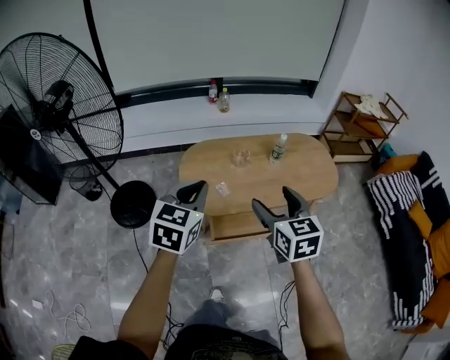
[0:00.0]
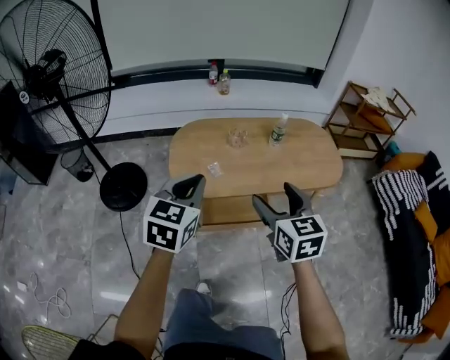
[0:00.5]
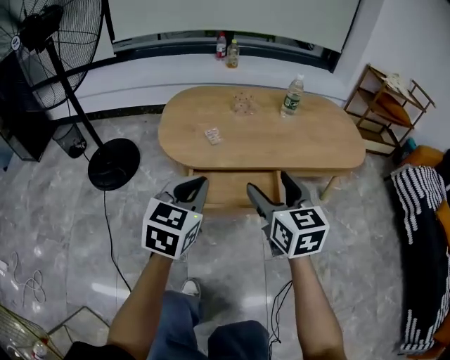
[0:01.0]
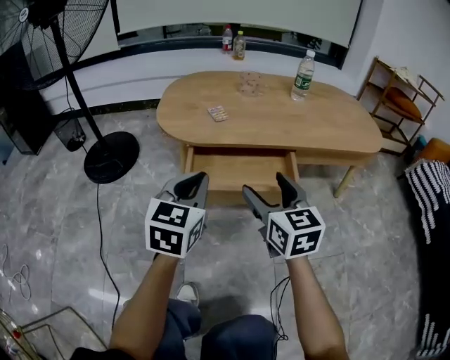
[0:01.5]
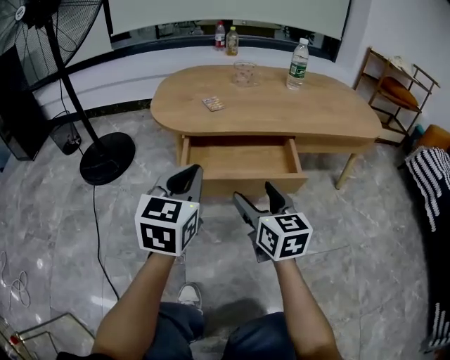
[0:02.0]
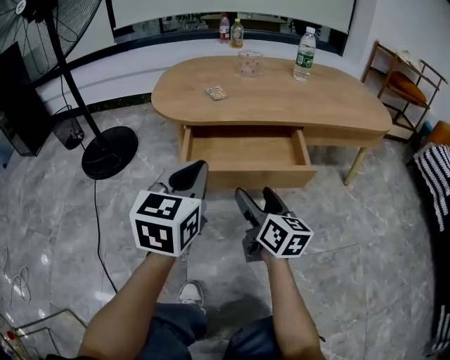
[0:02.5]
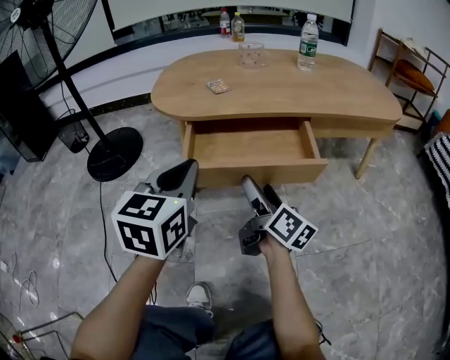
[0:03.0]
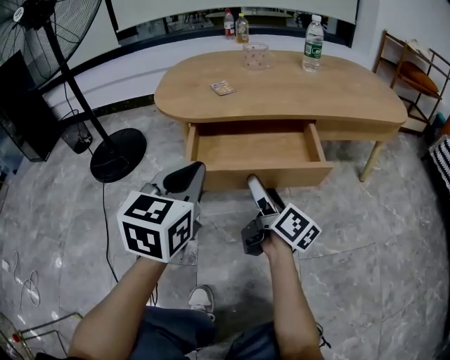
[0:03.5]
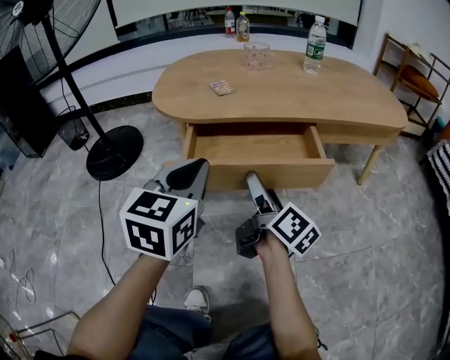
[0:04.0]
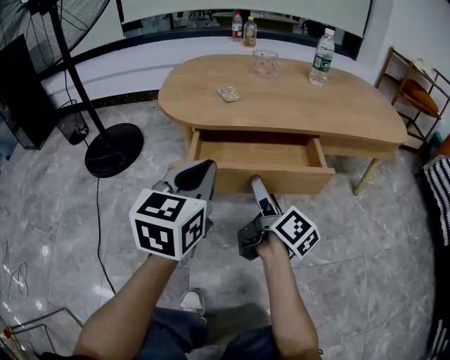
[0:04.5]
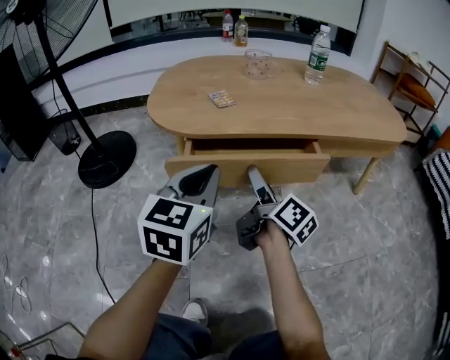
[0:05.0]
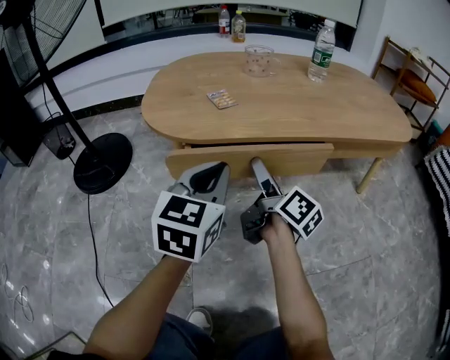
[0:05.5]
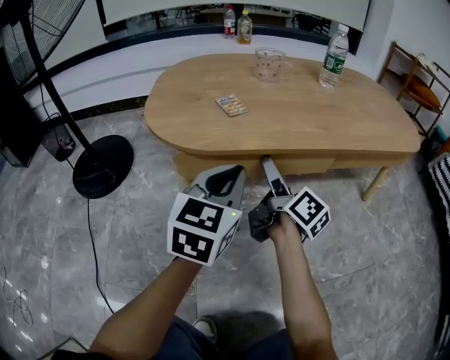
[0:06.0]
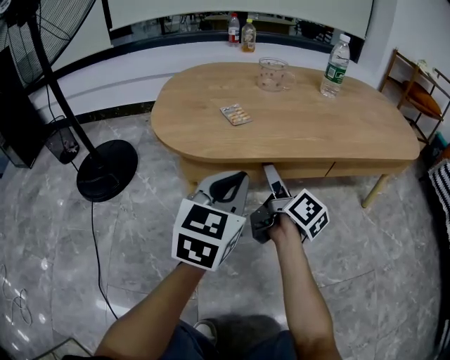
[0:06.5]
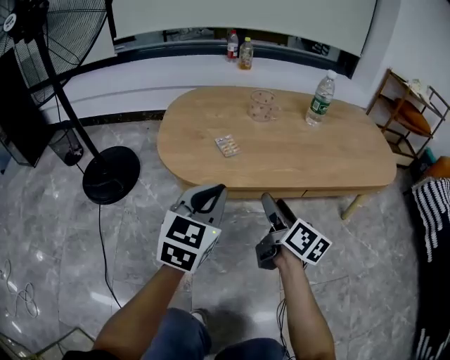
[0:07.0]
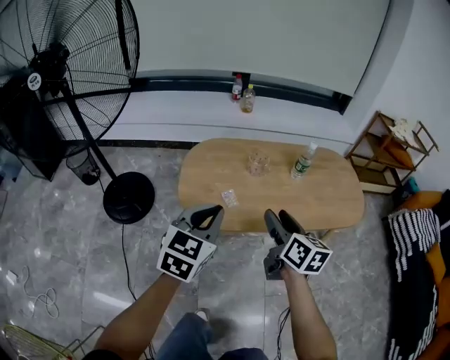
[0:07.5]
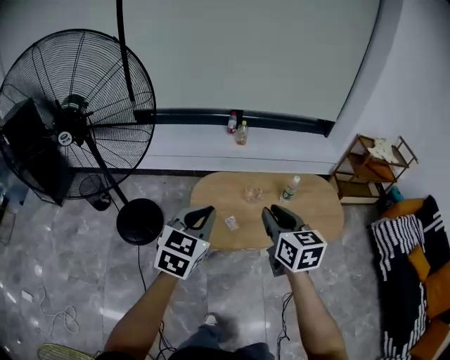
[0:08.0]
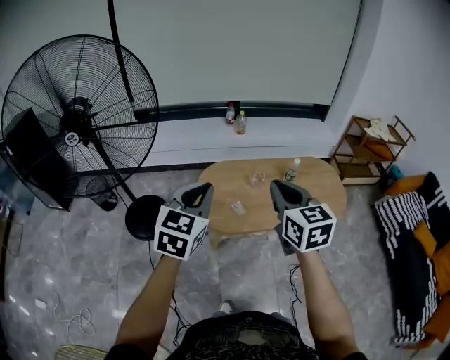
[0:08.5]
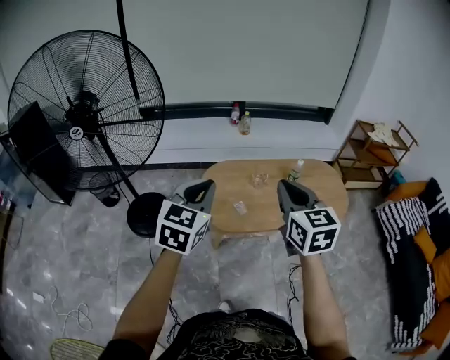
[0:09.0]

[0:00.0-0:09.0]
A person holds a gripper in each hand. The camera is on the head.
0:00.0 to 0:02.0: The two grippers go some 50 cm downward.
0:02.0 to 0:04.5: The right gripper travels downward and forward by approximately 10 cm, and rolls clockwise, seen from behind, by roughly 50 degrees.
0:04.5 to 0:07.0: The right gripper travels upward and forward by roughly 10 cm, while the left gripper moves forward and upward, some 10 cm.
0:07.0 to 0:09.0: Both grippers travel together upward, roughly 60 cm. The right gripper rolls counterclockwise, seen from behind, by approximately 50 degrees, and closes.

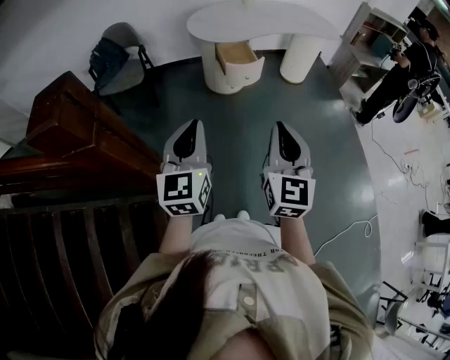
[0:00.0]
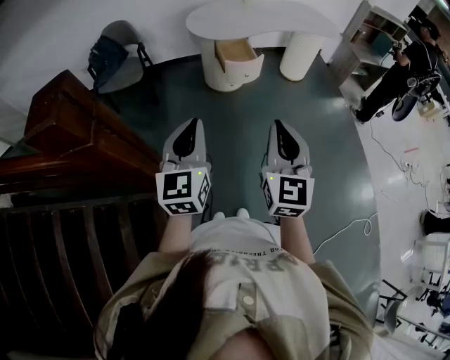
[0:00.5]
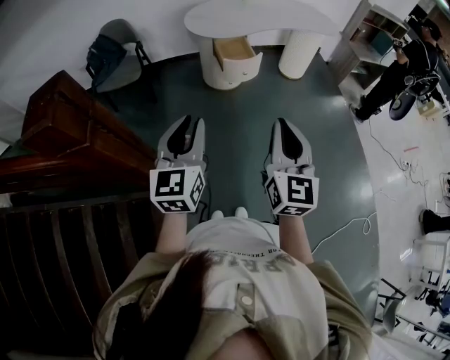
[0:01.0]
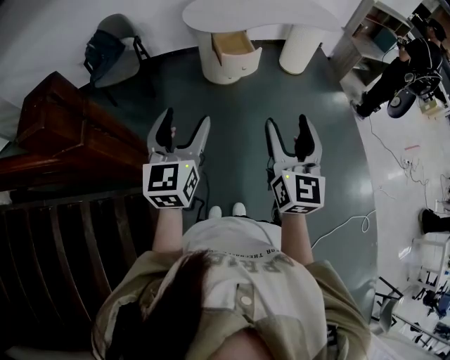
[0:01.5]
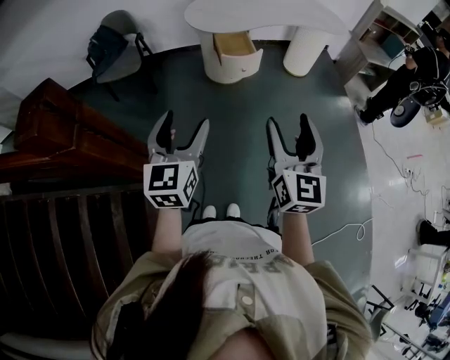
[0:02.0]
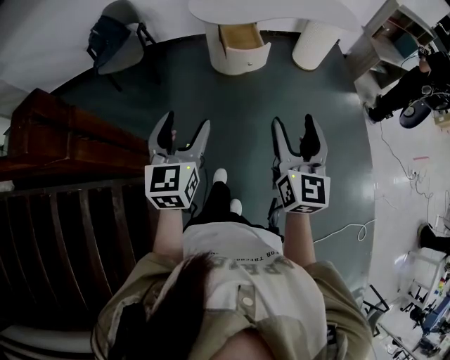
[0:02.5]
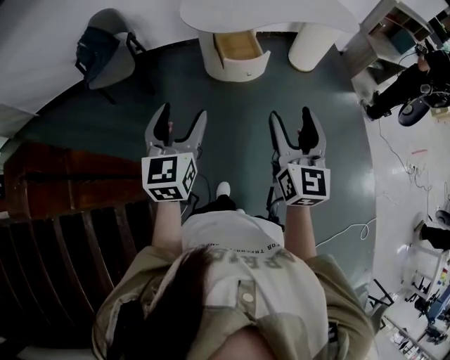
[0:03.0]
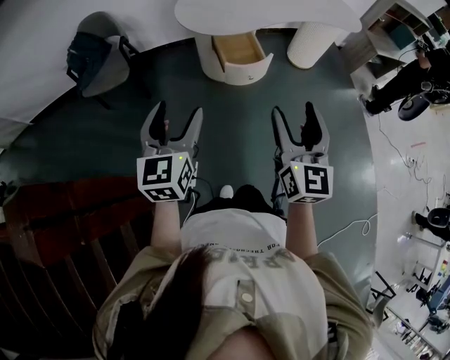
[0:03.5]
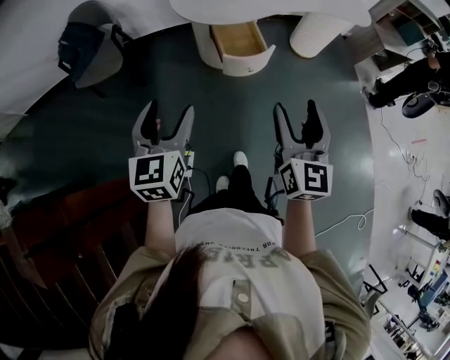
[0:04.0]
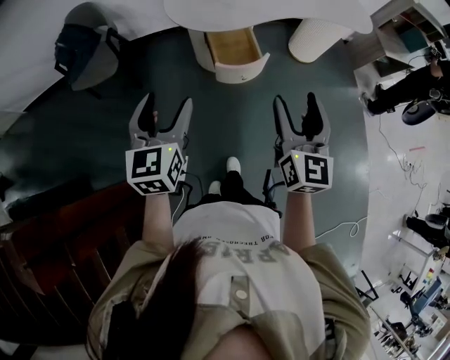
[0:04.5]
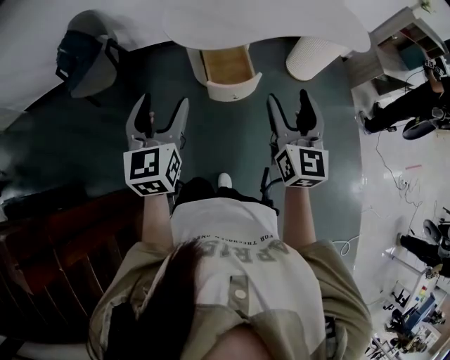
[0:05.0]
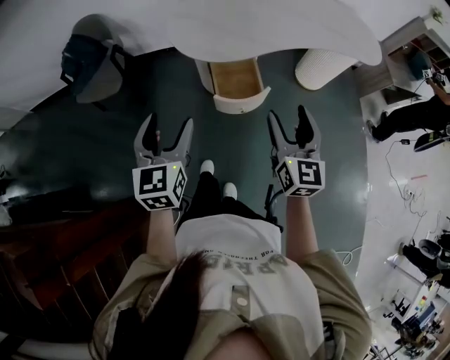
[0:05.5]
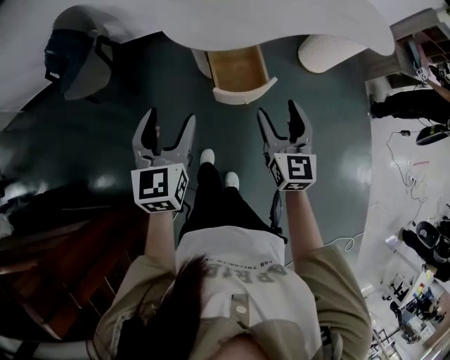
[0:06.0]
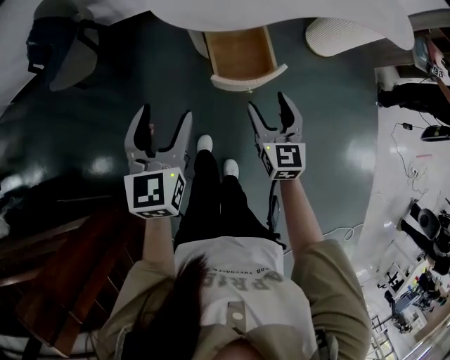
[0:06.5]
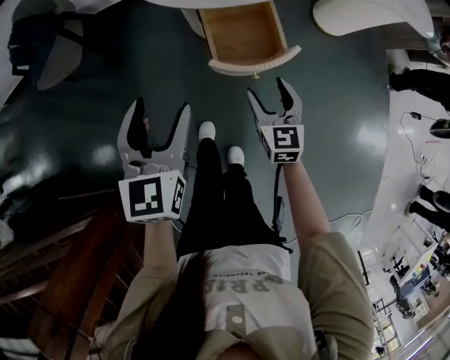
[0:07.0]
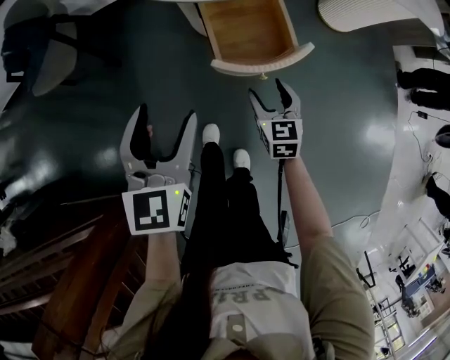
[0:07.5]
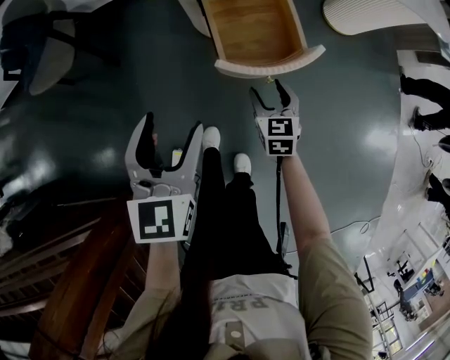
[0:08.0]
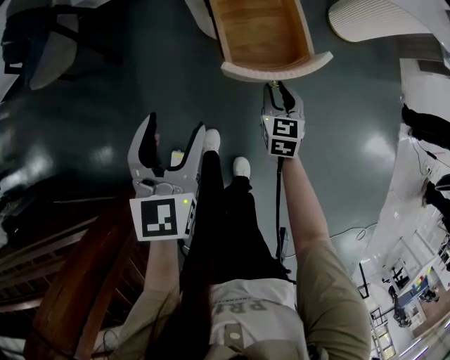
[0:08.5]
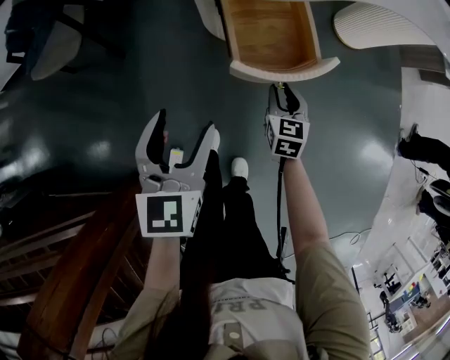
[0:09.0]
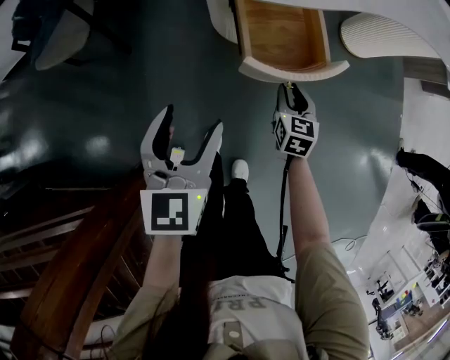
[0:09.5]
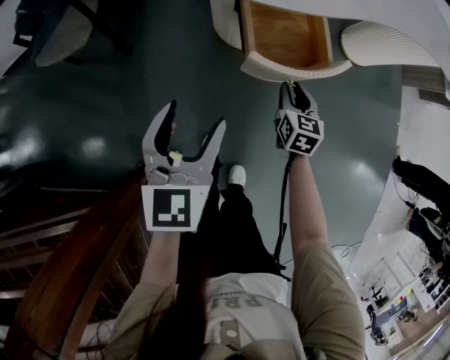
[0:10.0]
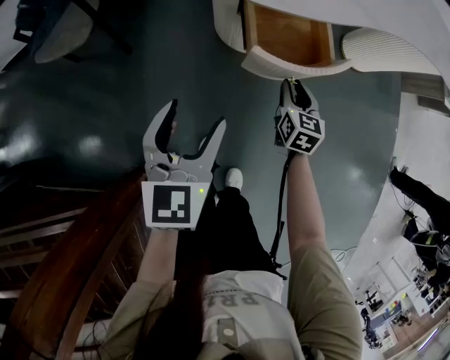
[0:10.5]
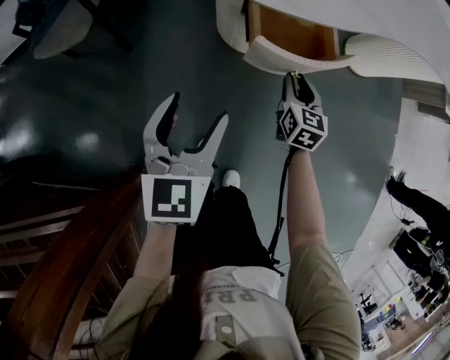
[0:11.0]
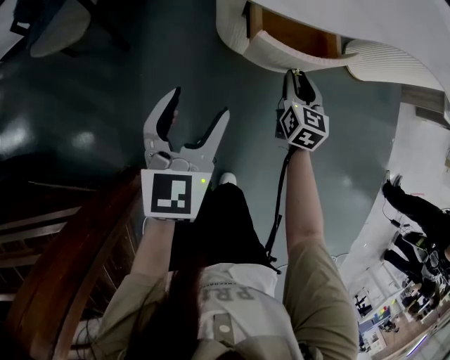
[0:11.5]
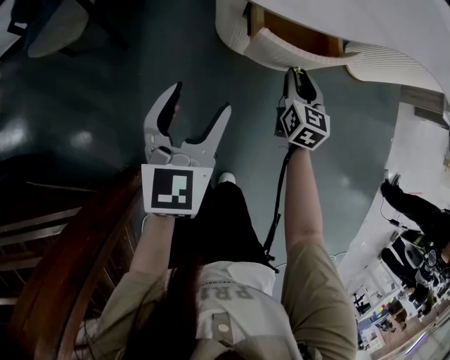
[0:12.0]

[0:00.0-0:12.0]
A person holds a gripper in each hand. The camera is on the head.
0:00.0 to 0:02.0: The right gripper goes roughly 10 cm to the right, and opens; the left gripper travels to the right by roughly 5 cm, and opens up.
0:02.0 to 0:04.0: The two grippers go roughly 25 cm forward.
0:04.0 to 0:06.0: The left gripper shifts about 20 cm forward, while the right gripper is displaced forward and downward by about 25 cm.
0:06.0 to 0:08.0: The left gripper moves downward, about 20 cm. The right gripper goes roughly 40 cm downward, and changes its angle by roughly 30 degrees.
0:08.0 to 0:10.0: The right gripper shifts approximately 5 cm forward, and closes its fingers.
0:10.0 to 0:12.0: The two grippers go approximately 5 cm forward.

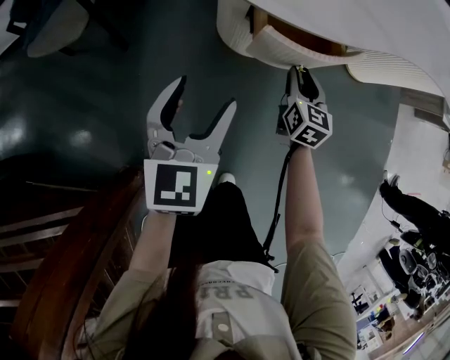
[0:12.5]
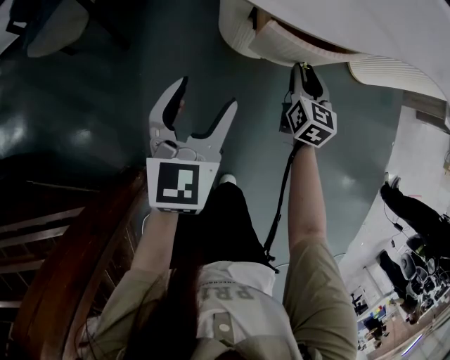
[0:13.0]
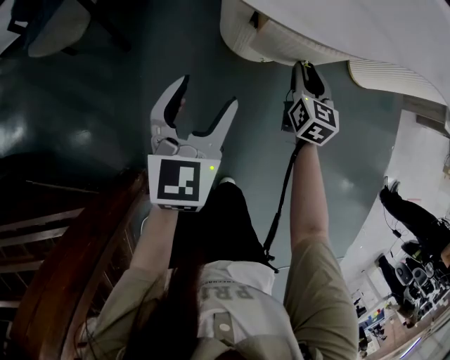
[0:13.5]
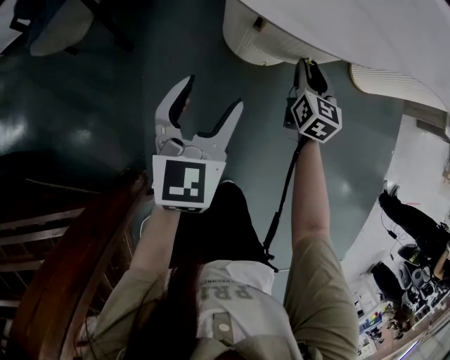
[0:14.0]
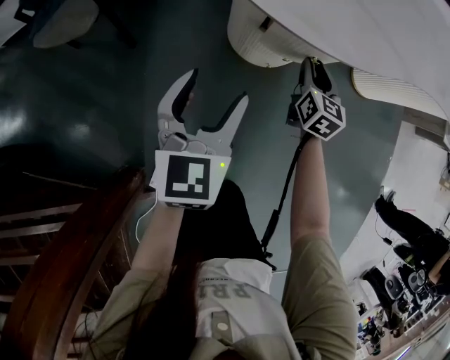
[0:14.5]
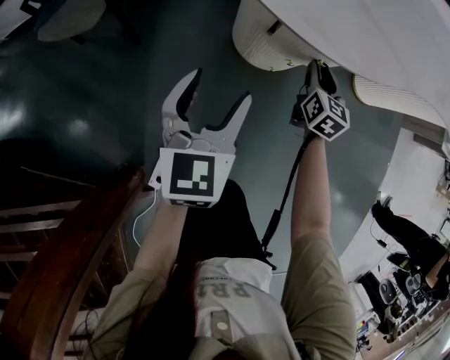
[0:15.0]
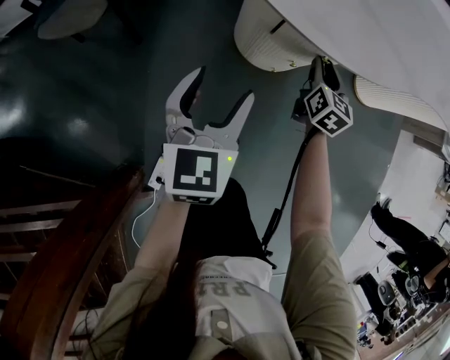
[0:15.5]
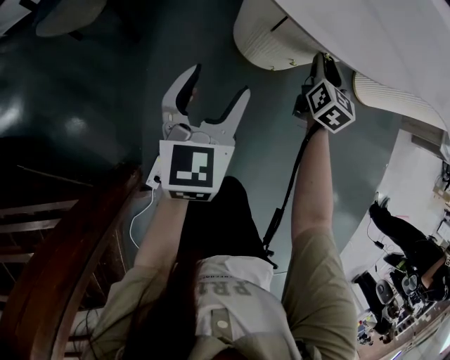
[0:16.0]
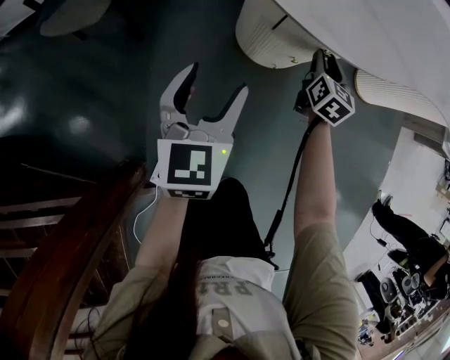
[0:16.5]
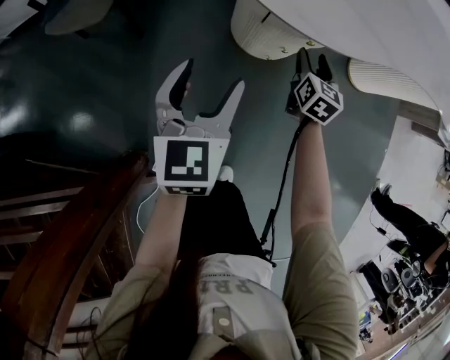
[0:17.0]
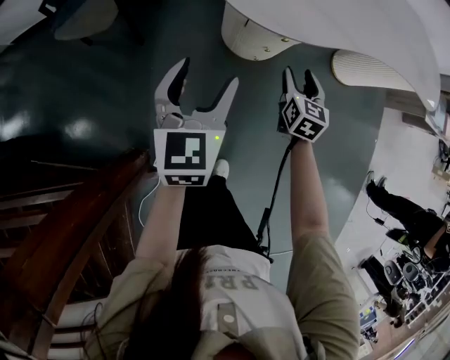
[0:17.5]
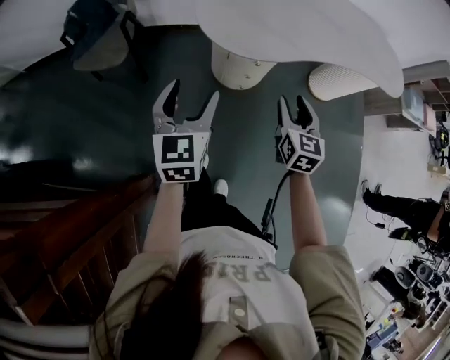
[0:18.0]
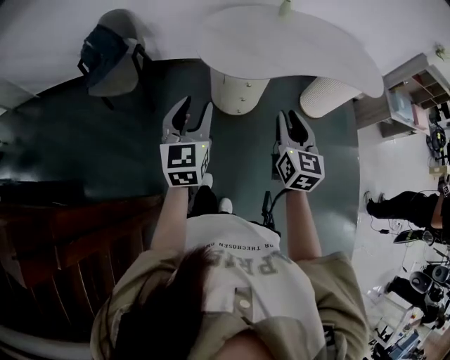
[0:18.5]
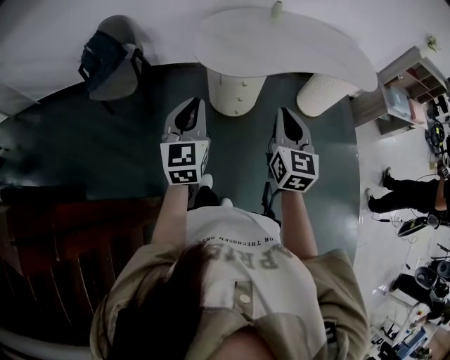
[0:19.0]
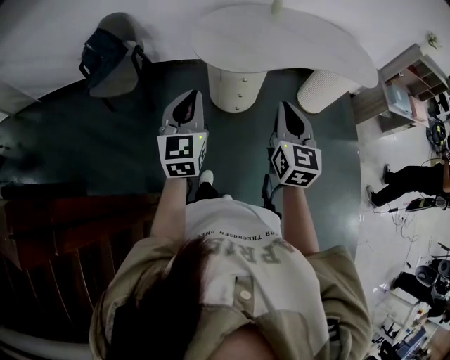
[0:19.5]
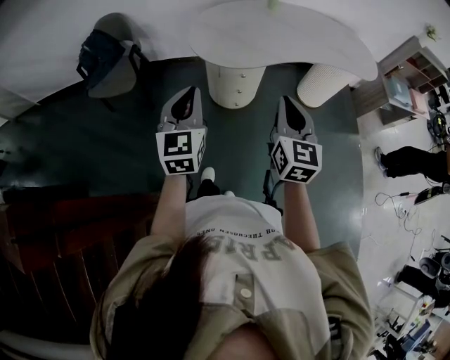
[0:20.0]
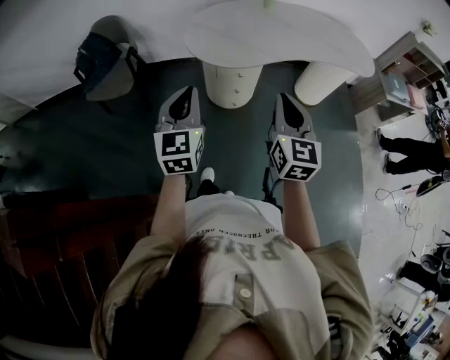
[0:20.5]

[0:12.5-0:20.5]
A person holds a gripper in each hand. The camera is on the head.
0:12.5 to 0:14.5: The right gripper moves forward, about 5 cm.
0:14.5 to 0:16.5: There are only small adjustments of the grippers.
0:16.5 to 0:18.5: Both grippers travel together upward and backward, roughly 50 cm. The left gripper closes up.
0:18.5 to 0:20.5: The left gripper closes; the right gripper shifts by about 5 cm, and closes its fingers.
